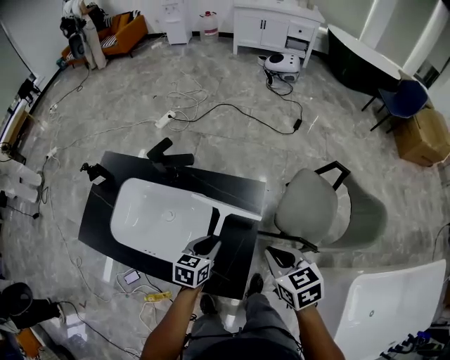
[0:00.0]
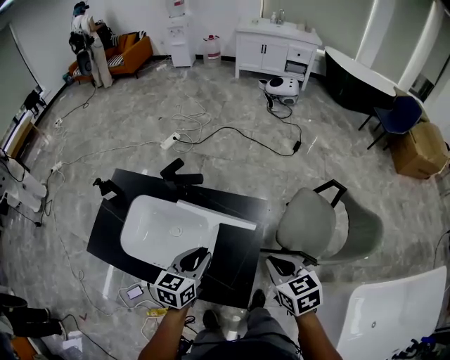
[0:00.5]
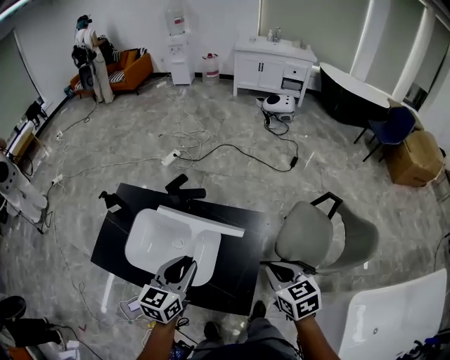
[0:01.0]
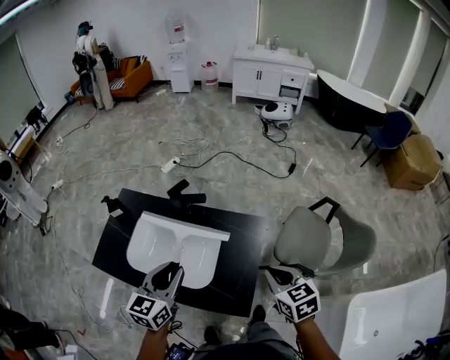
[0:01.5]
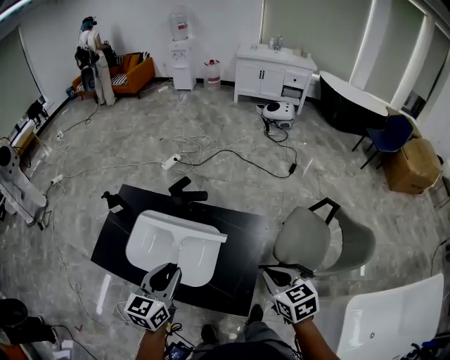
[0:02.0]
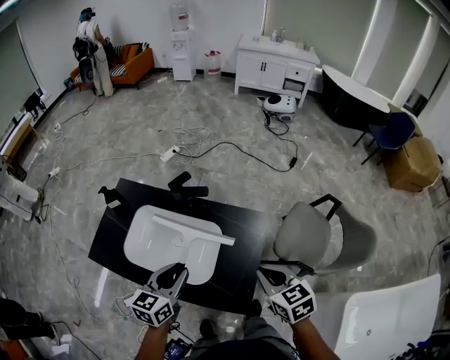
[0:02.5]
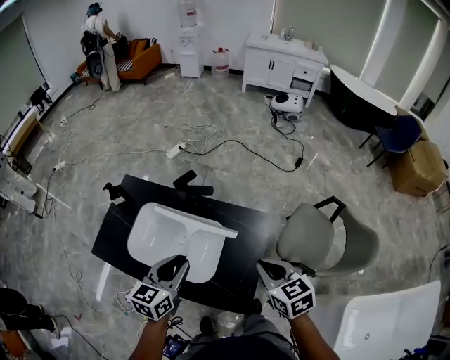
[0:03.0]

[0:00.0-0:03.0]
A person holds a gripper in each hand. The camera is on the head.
0:00.0 to 0:01.5: The right gripper moves upward, about 10 cm. The left gripper travels upward and to the left by approximately 30 cm, and changes its angle by some 30 degrees.
0:01.5 to 0:03.0: The right gripper moves approximately 5 cm.

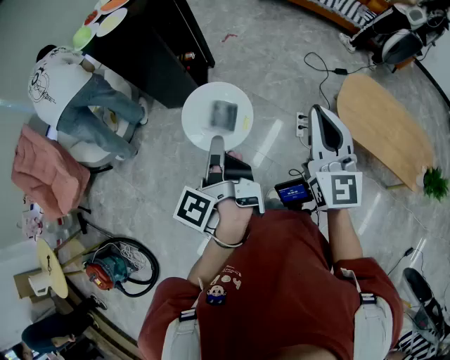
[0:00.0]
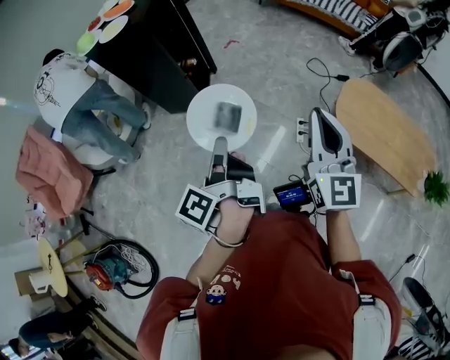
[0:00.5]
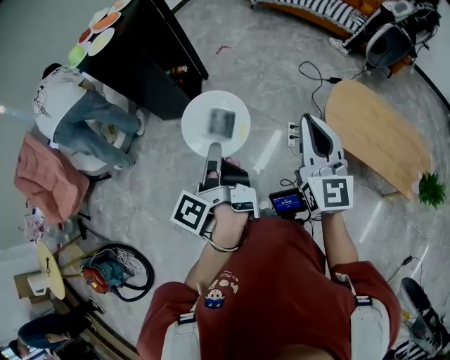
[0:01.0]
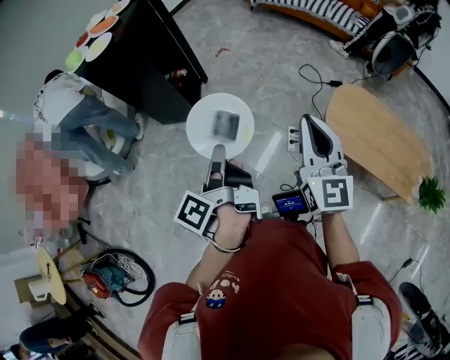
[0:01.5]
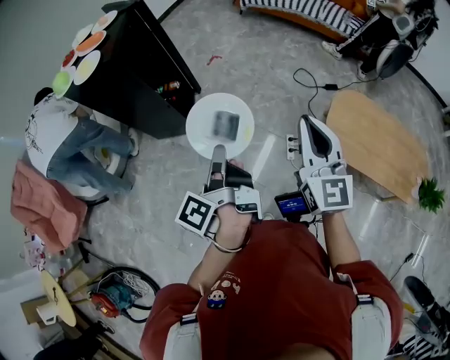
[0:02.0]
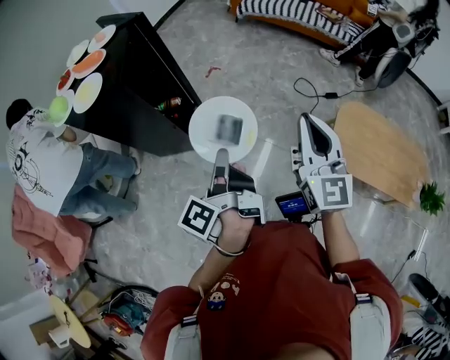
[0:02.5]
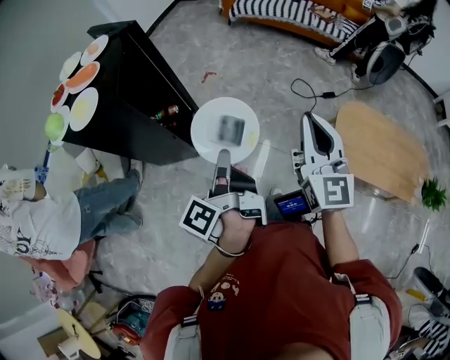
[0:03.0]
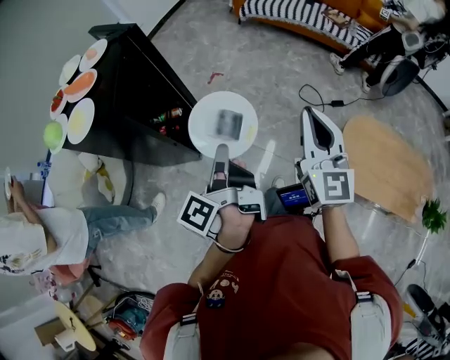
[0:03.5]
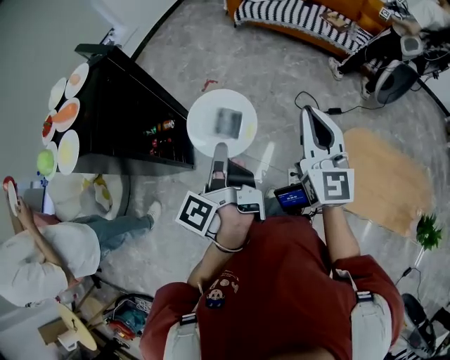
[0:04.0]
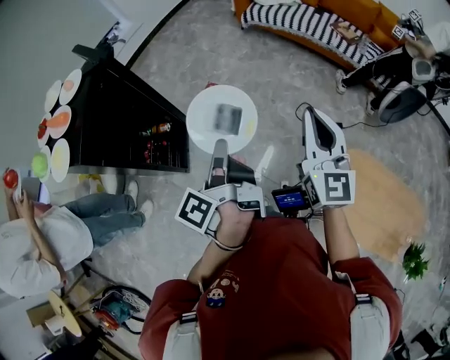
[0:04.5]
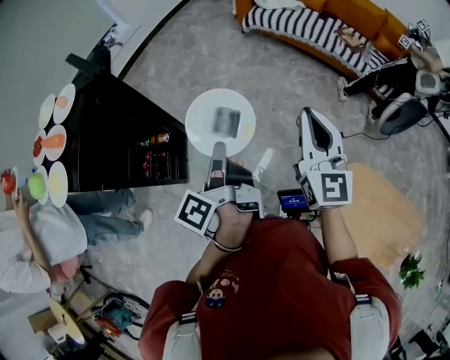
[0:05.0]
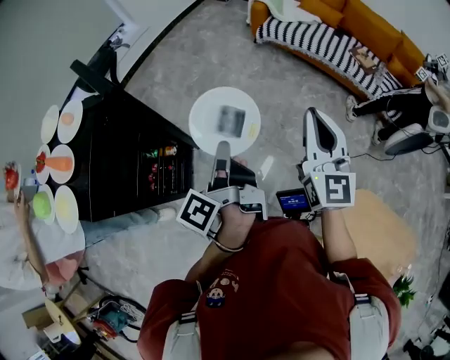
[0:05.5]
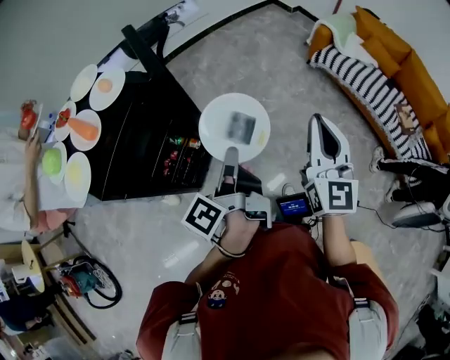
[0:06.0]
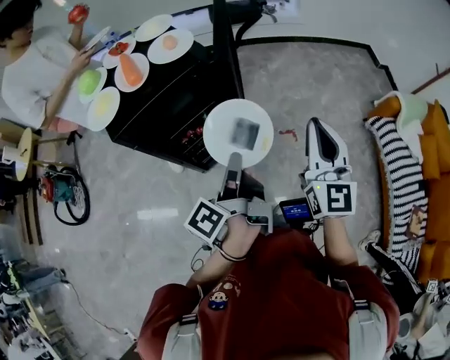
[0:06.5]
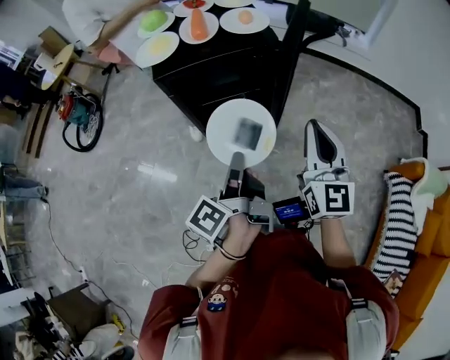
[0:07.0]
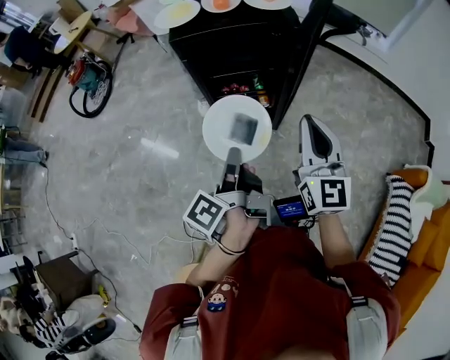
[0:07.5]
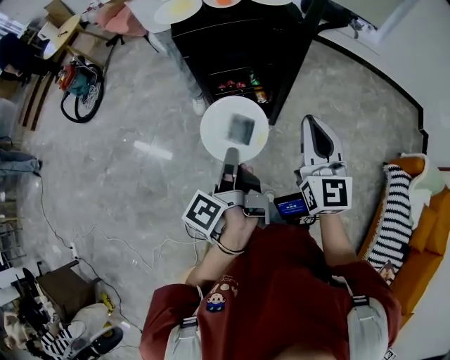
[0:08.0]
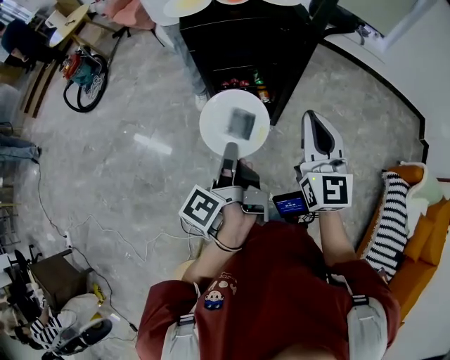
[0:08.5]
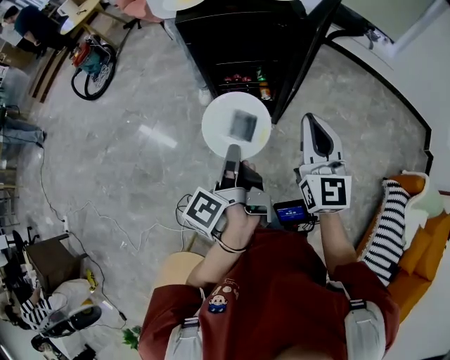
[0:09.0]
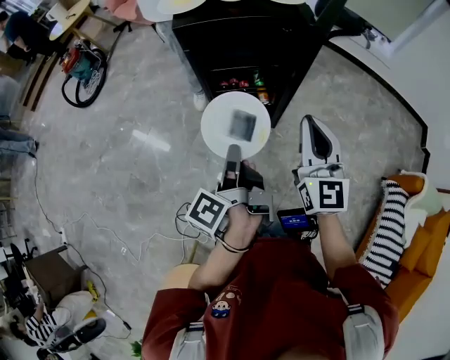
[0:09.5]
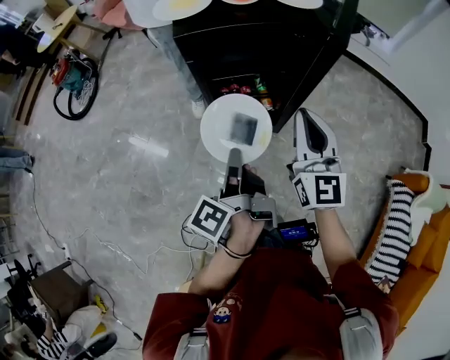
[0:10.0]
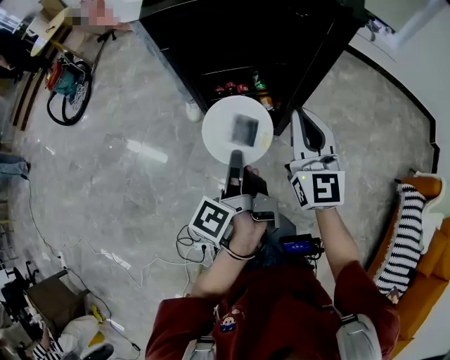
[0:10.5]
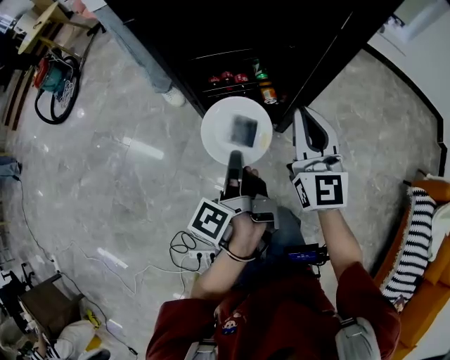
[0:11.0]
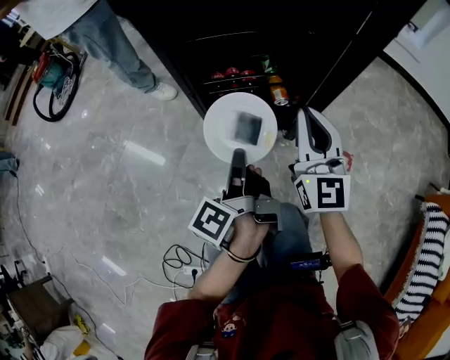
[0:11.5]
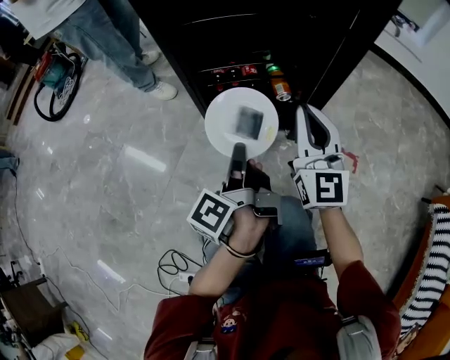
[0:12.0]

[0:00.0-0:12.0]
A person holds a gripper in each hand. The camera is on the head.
0:00.0 to 0:02.0: Both grippers travel together forward and to the right, some 15 cm.
0:02.0 to 0:04.0: The two grippers go about 30 cm forward.
0:04.0 to 0:06.0: Both grippers travel together forward, approximately 35 cm. The right gripper swivels some 20 degrees, while the left gripper rotates roughly 20 degrees.
0:06.0 to 0:08.0: The left gripper changes place by roughly 20 cm, and turns by roughly 60 degrees; the right gripper shifts by approximately 15 cm, and rotates some 60 degrees.
0:08.0 to 0:10.0: The two grippers go about 10 cm forward.
0:10.0 to 0:12.0: The grippers both shift downward by roughly 40 cm.

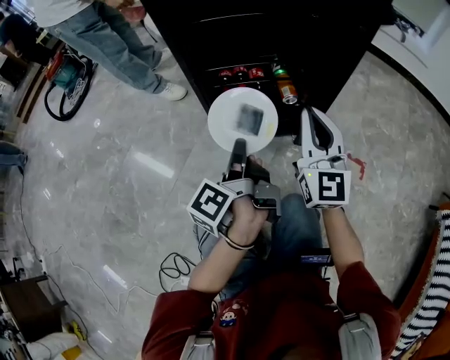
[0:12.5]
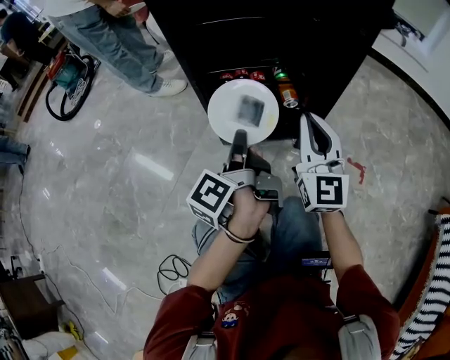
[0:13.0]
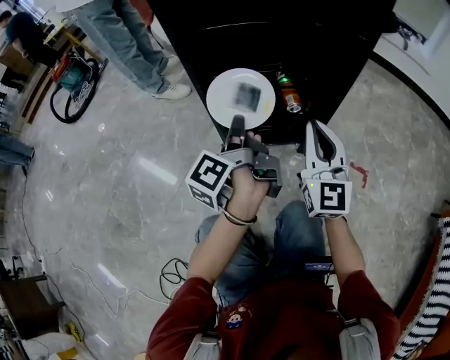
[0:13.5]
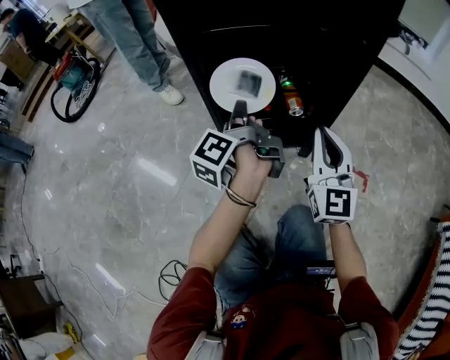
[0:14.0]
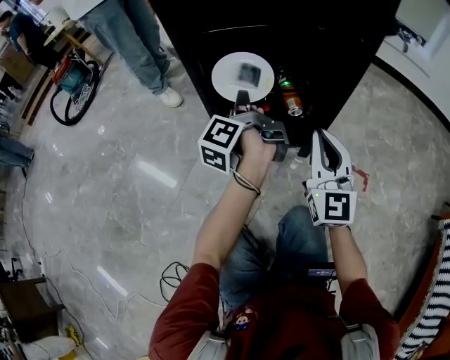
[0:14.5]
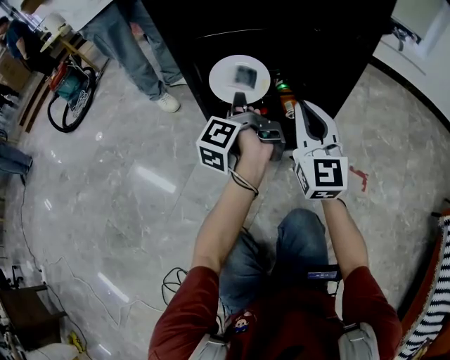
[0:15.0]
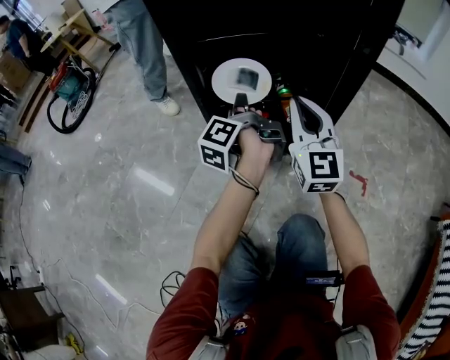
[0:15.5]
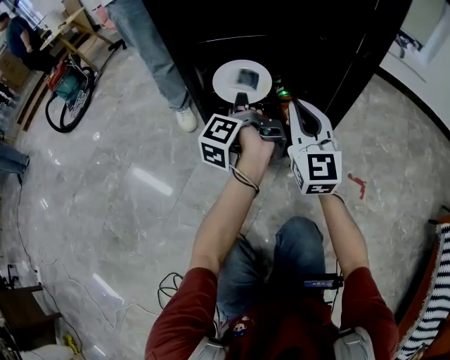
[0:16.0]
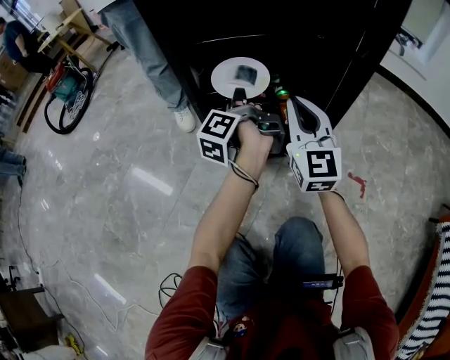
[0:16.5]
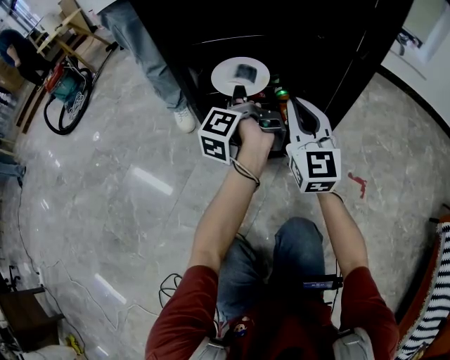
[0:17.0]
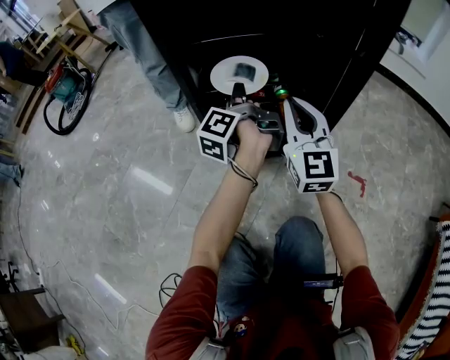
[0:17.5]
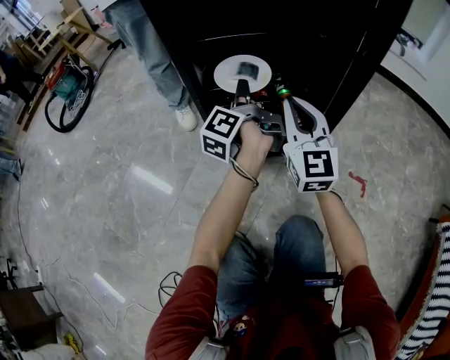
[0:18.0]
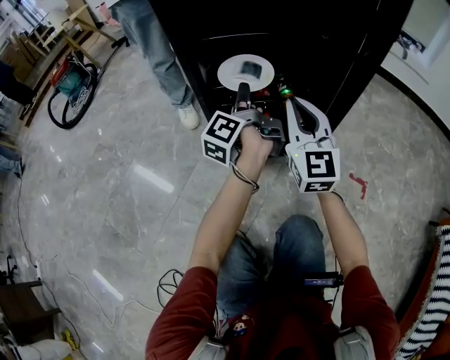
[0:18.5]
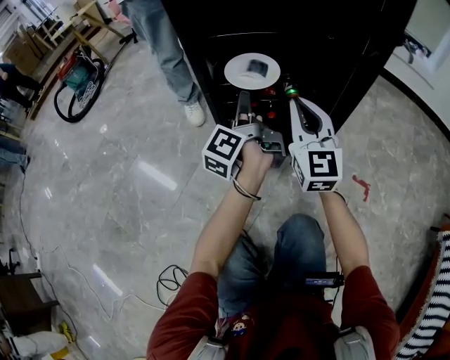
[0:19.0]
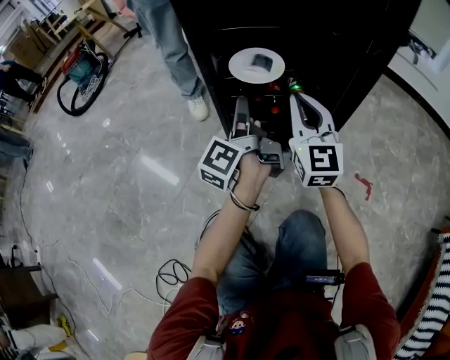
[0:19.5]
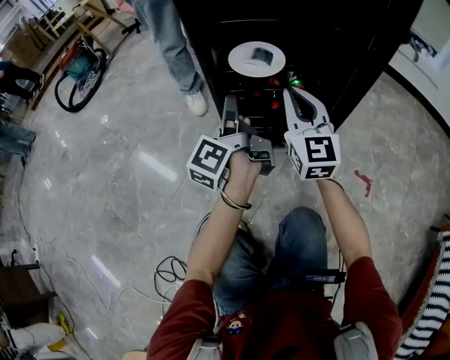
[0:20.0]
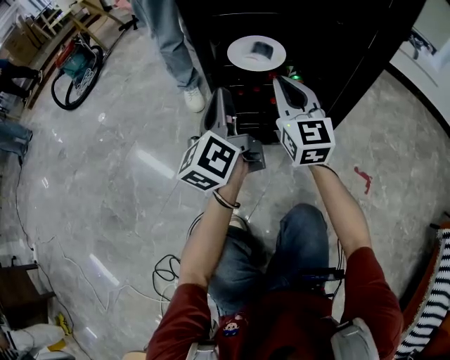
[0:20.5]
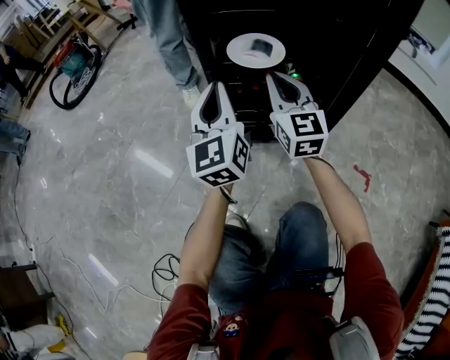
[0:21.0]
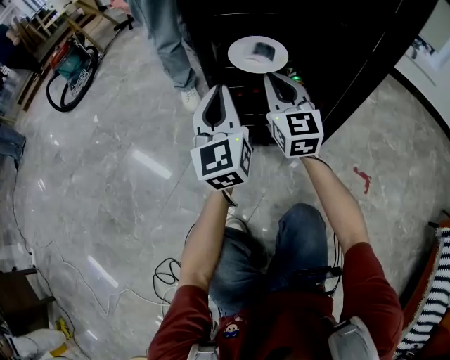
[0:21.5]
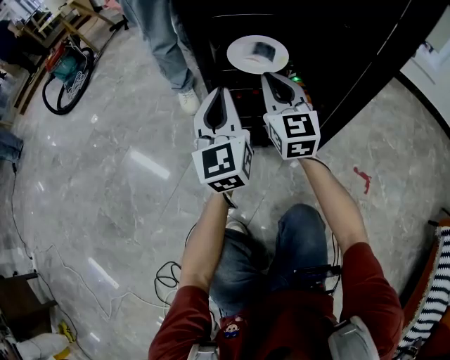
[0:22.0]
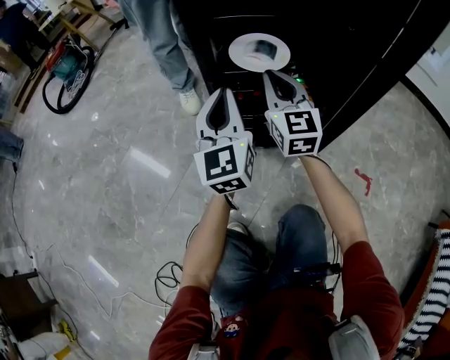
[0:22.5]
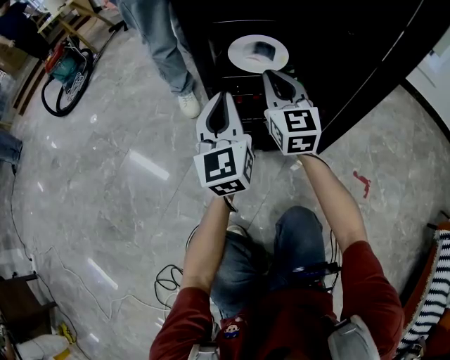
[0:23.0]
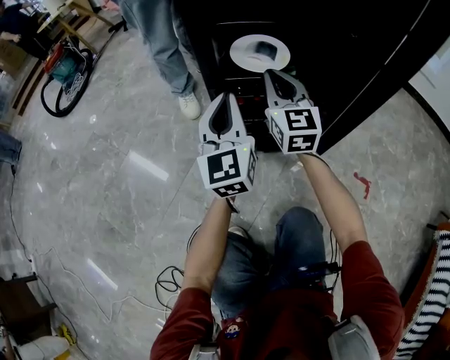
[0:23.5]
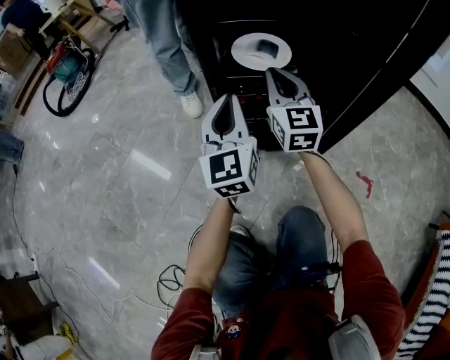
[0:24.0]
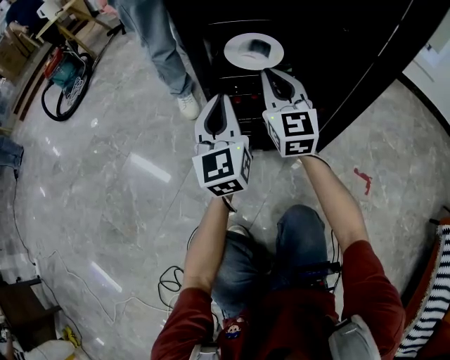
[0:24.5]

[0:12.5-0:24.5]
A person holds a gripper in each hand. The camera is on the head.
0:12.5 to 0:14.5: The left gripper heads forward, covering approximately 15 cm.
0:14.5 to 0:16.5: The right gripper travels forward by roughly 10 cm; the left gripper moves forward, roughly 5 cm.
0:16.5 to 0:18.5: The left gripper opens up.
0:18.5 to 0:20.5: The right gripper ends up some 5 cm from where it was; the left gripper is displaced backward and to the left by approximately 10 cm, rotates some 40 degrees, and closes.
0:20.5 to 0:22.5: The right gripper travels forward by some 5 cm, while the left gripper turns by about 40 degrees.
0:22.5 to 0:24.5: The grippers move only a little.
